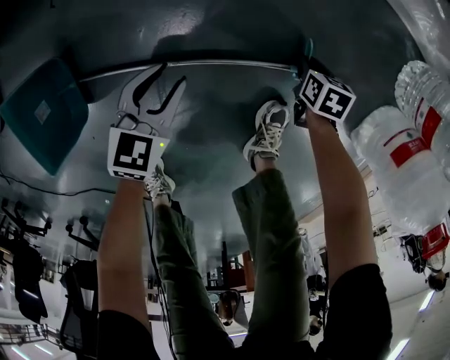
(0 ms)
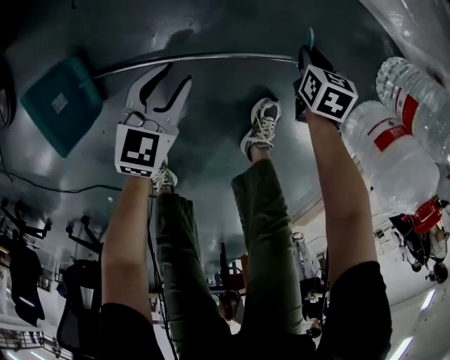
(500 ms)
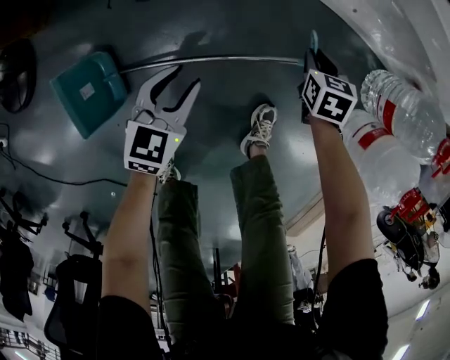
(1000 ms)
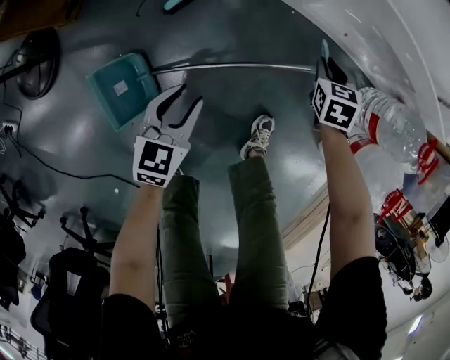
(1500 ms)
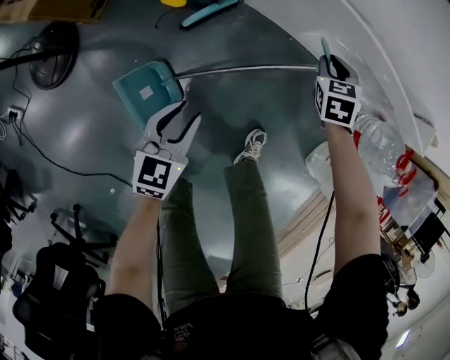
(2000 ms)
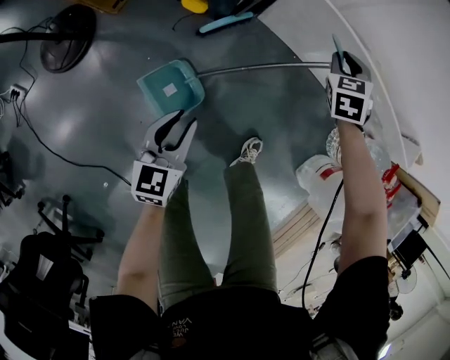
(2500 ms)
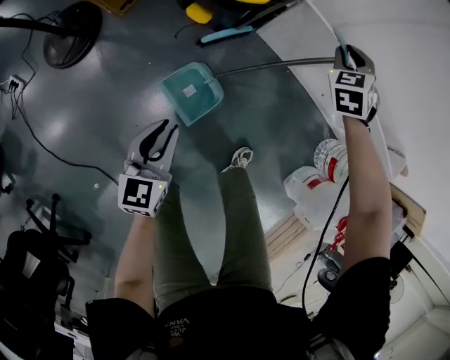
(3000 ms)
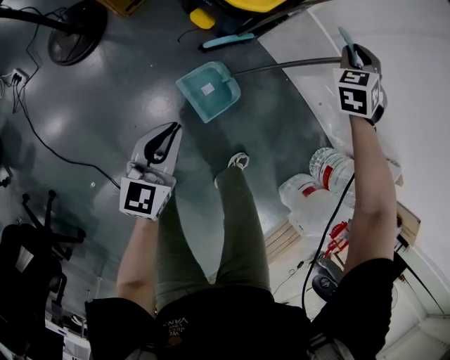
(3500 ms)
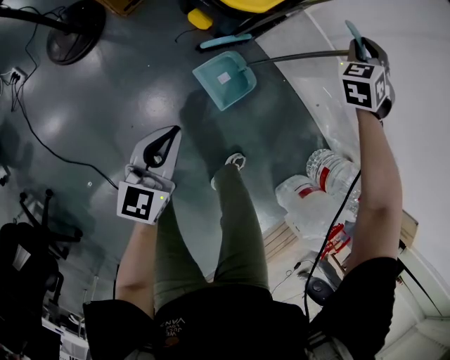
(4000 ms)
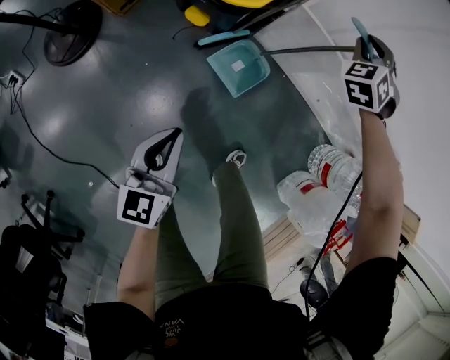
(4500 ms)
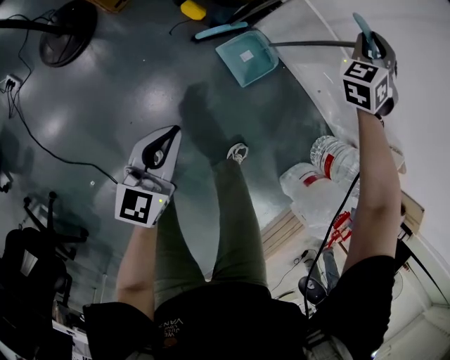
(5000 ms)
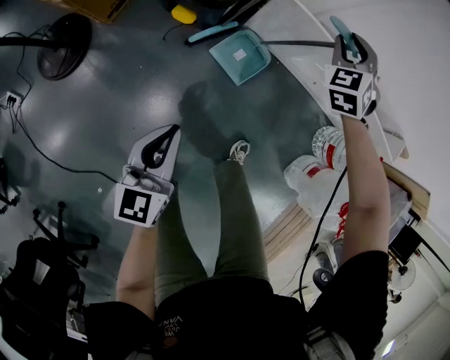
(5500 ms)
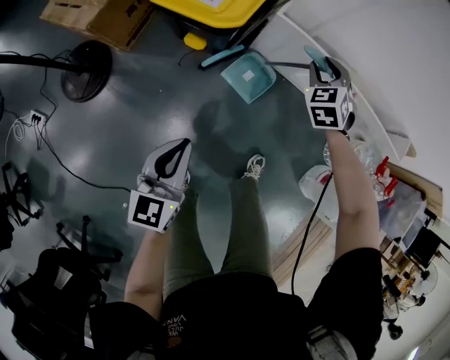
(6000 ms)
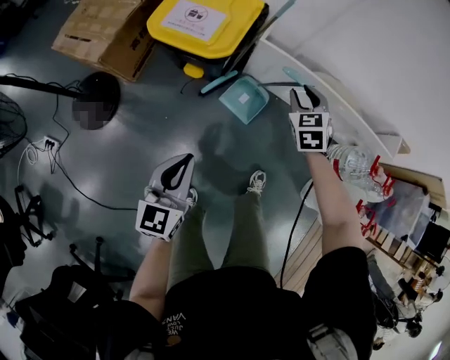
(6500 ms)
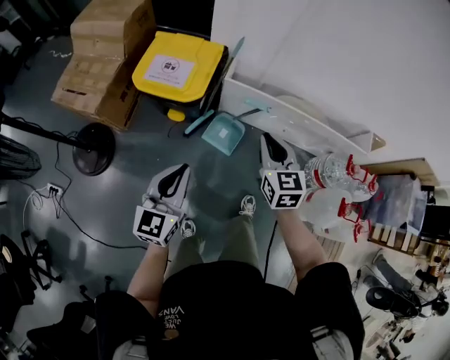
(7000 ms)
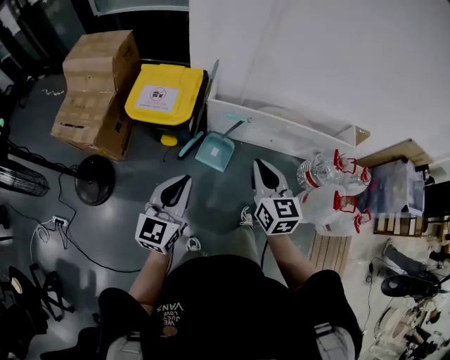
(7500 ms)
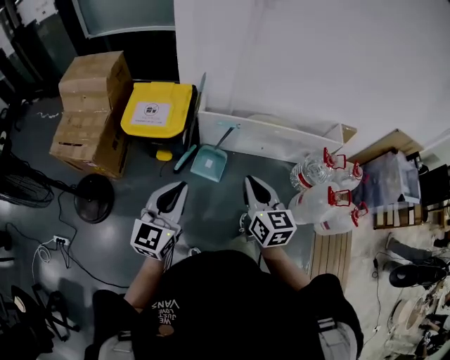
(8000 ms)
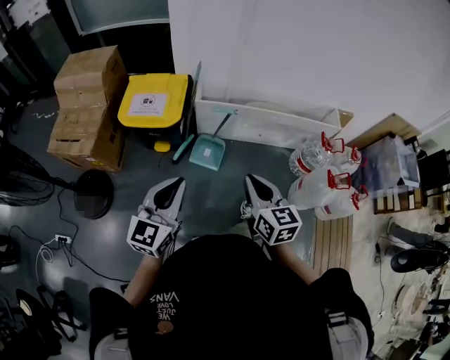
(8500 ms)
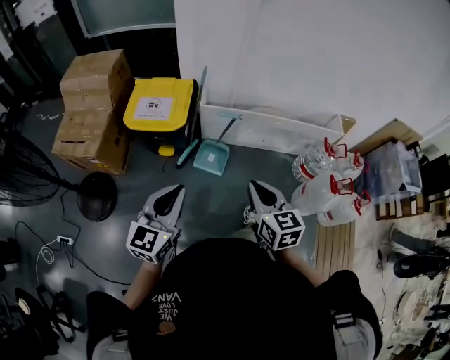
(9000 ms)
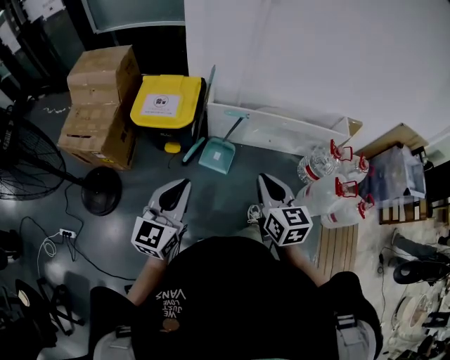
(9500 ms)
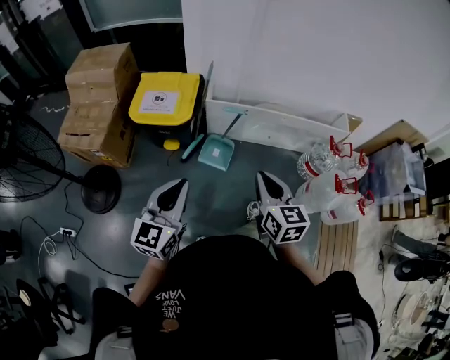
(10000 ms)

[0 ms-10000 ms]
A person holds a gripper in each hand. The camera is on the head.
0 ms to 2000 ms: The right gripper moves upward and to the left, roughly 50 cm, and changes its angle by roughly 50 degrees. Meanwhile the left gripper travels upward by about 35 cm.
2000 ms to 4000 ms: The right gripper goes some 25 cm upward, forward and to the left, and swivels approximately 40 degrees. Meanwhile the left gripper travels upward and to the left by roughly 15 cm, changes its angle by some 30 degrees, and closes.
4000 ms to 6000 ms: The right gripper travels backward by approximately 10 cm. Meanwhile the left gripper moves upward, about 10 cm.
6000 ms to 8000 ms: The right gripper travels backward and upward by roughly 40 cm, rolls clockwise, seen from behind, by some 60 degrees, and closes. The left gripper shifts some 25 cm upward, and changes its angle by roughly 30 degrees.
8000 ms to 10000 ms: The left gripper moves some 5 cm.

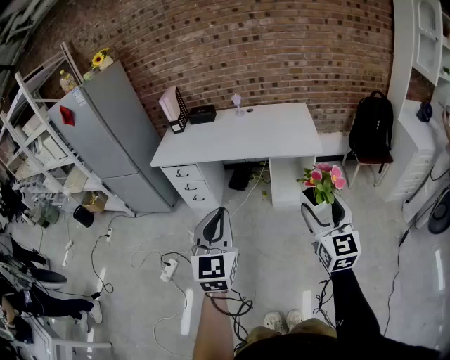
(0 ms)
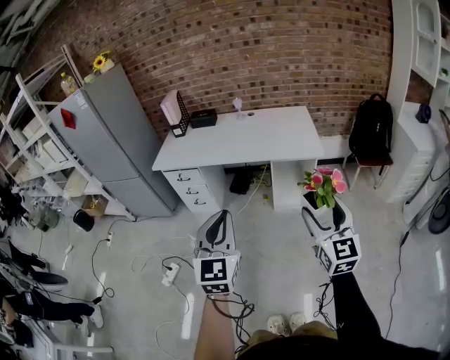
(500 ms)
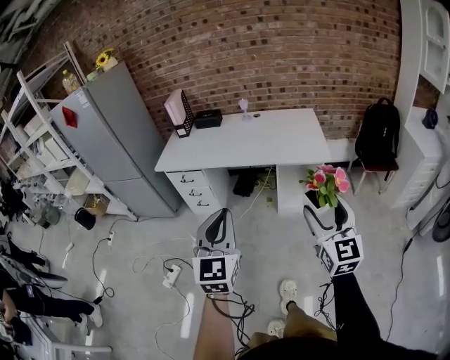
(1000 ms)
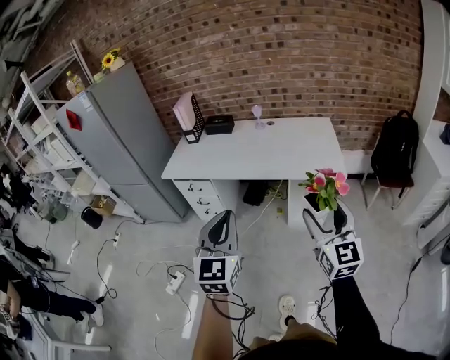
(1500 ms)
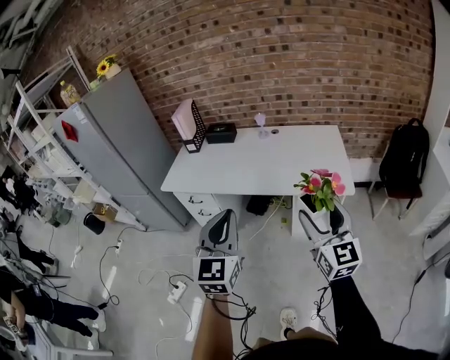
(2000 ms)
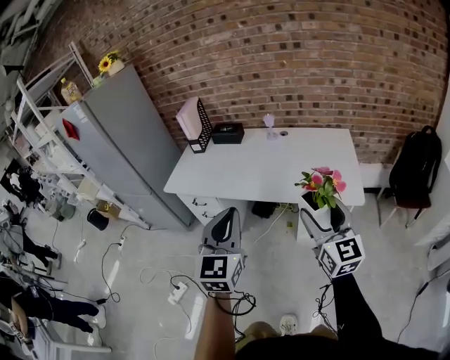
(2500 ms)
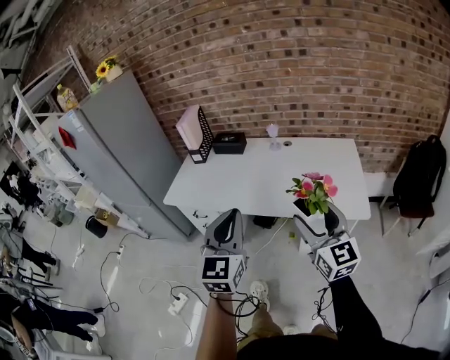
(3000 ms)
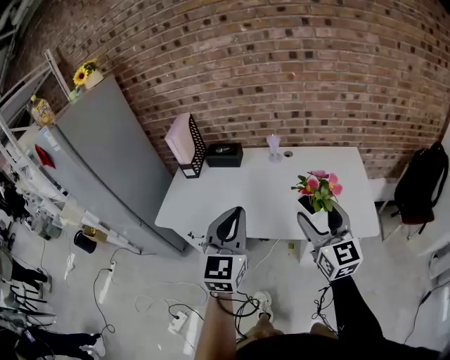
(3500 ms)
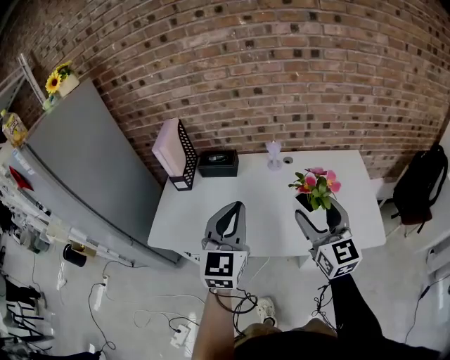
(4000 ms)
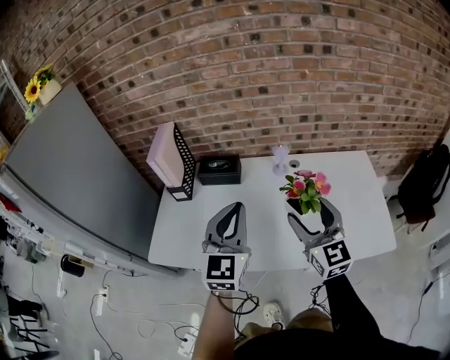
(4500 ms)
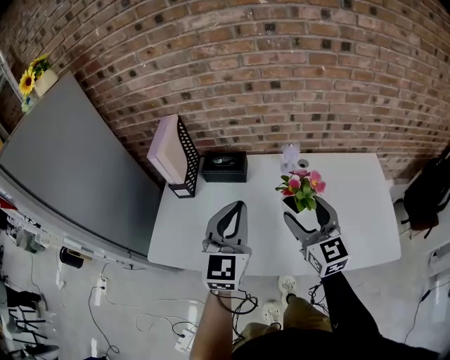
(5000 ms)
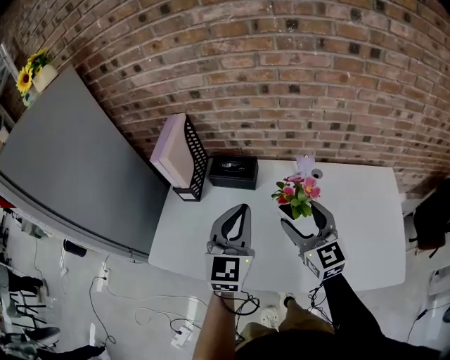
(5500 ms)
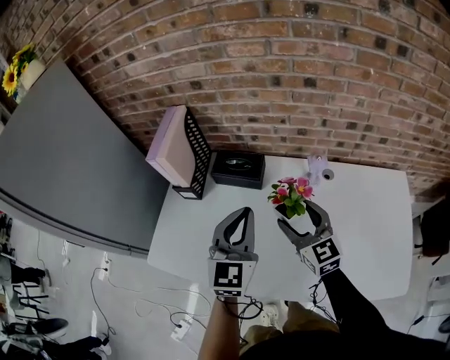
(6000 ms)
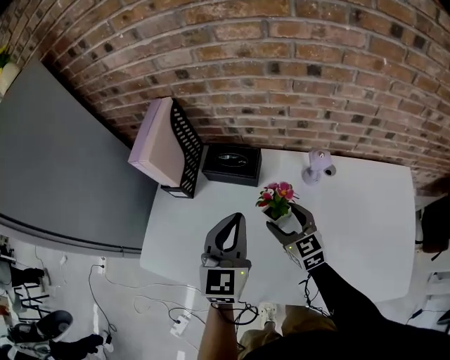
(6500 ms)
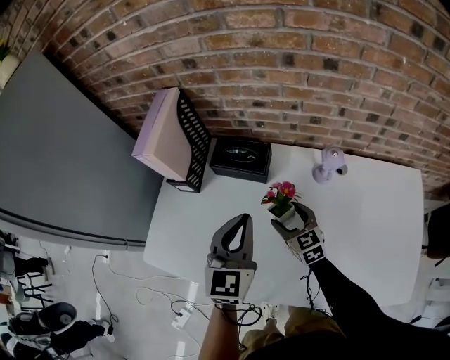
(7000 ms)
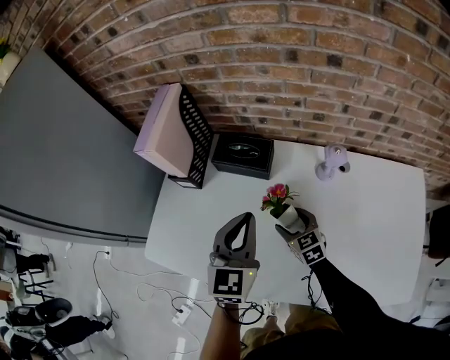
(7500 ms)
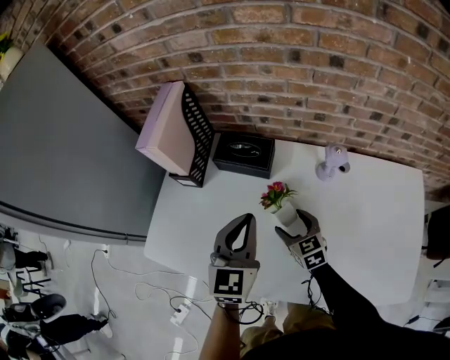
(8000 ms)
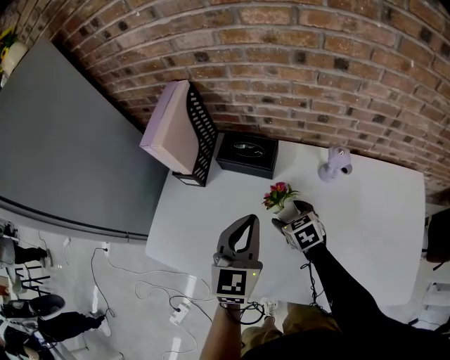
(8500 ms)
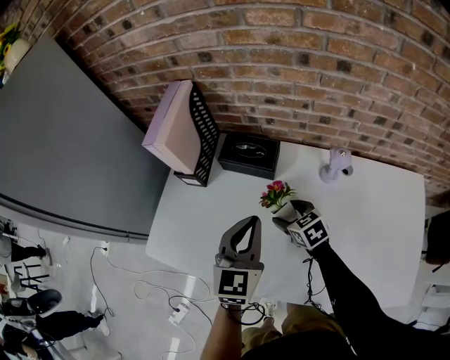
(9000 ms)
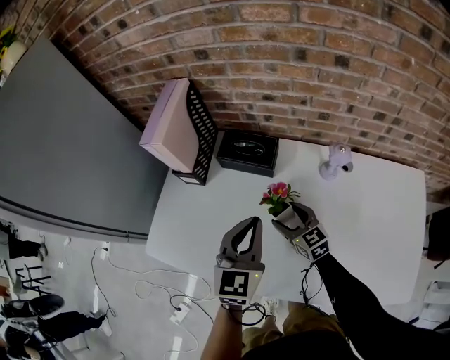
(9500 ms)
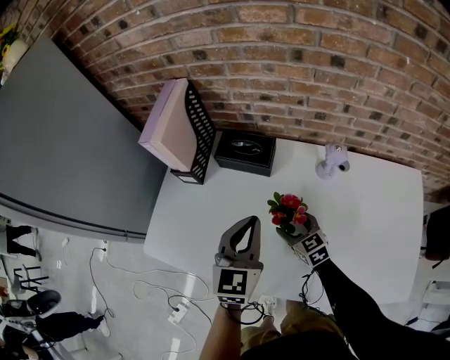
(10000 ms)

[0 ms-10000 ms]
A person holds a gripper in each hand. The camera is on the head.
0 ms to 2000 ms: The two grippers go some 25 cm forward.
2000 ms to 4000 ms: The two grippers go roughly 40 cm forward.
4000 ms to 6000 ms: The left gripper is displaced forward by about 25 cm. The right gripper moves forward, downward and to the left, some 35 cm, and turns by roughly 20 degrees.
6000 ms to 8000 ms: The right gripper shifts some 20 cm downward, and turns by approximately 20 degrees. Meanwhile the left gripper moves downward, roughly 5 cm.

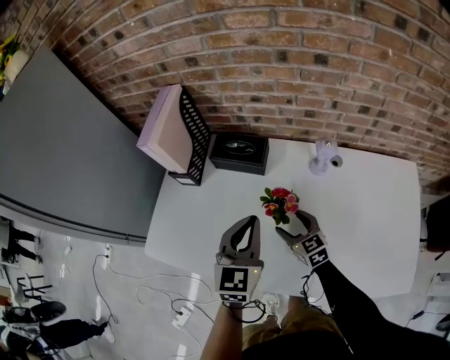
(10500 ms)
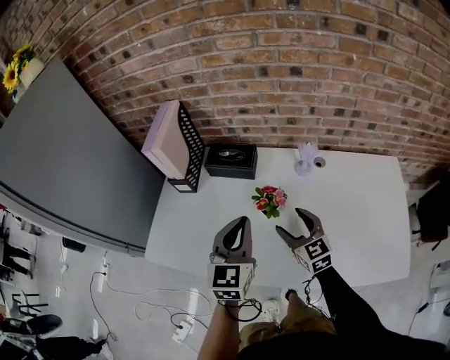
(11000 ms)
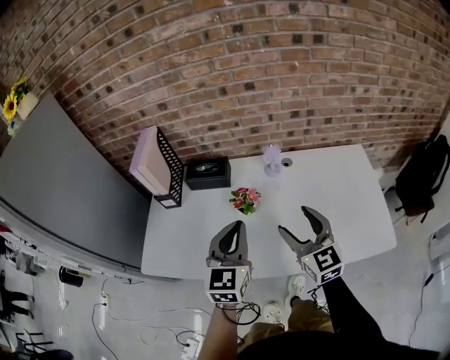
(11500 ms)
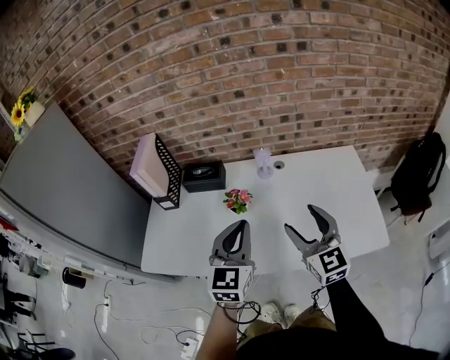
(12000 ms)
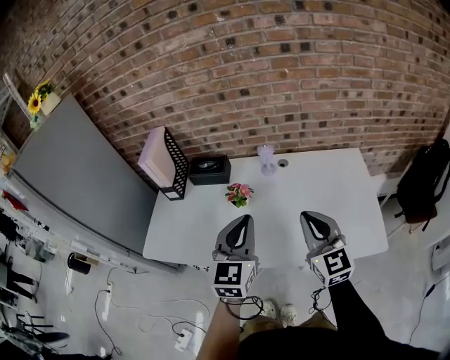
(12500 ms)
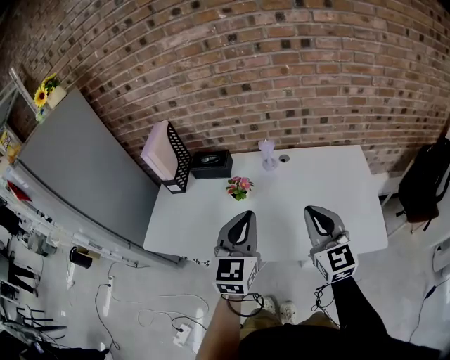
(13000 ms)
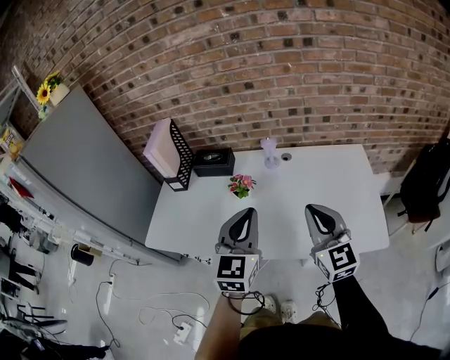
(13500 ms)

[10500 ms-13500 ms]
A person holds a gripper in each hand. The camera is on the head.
10500 ms to 12000 ms: The left gripper is displaced backward, upward and to the right by roughly 20 cm; the right gripper moves upward, backward and to the right, roughly 35 cm, and changes its angle by roughly 40 degrees.
12000 ms to 13500 ms: The grippers both shift backward by some 5 cm. The right gripper closes its fingers.

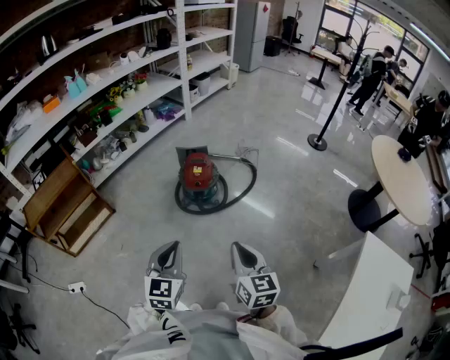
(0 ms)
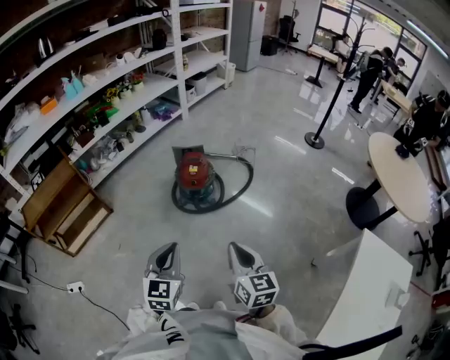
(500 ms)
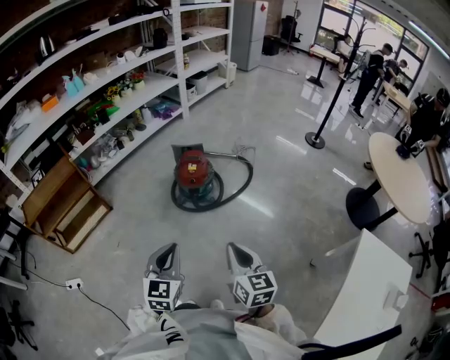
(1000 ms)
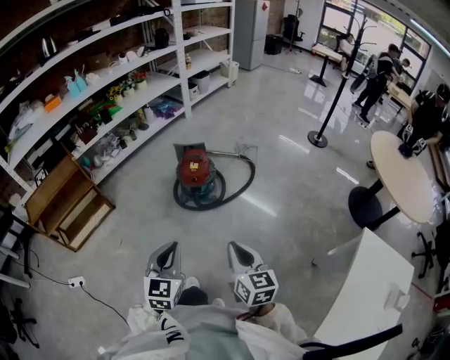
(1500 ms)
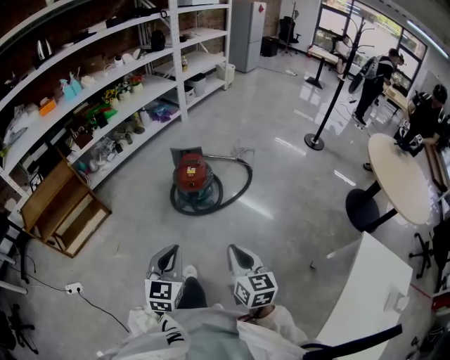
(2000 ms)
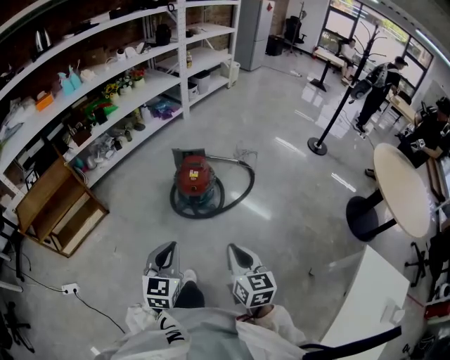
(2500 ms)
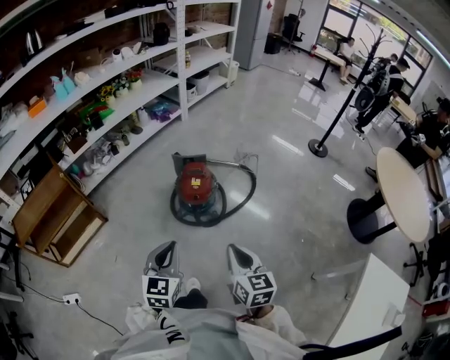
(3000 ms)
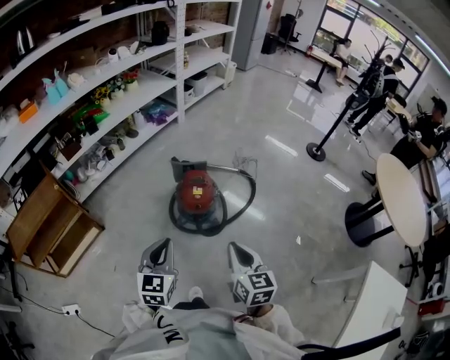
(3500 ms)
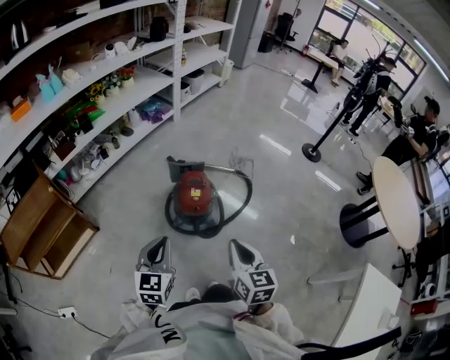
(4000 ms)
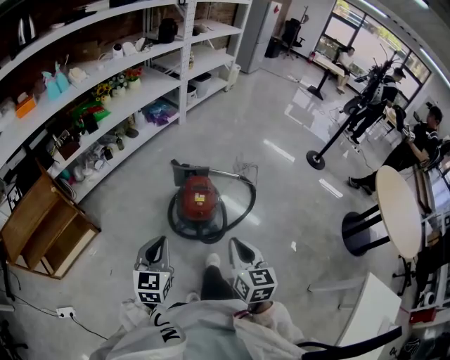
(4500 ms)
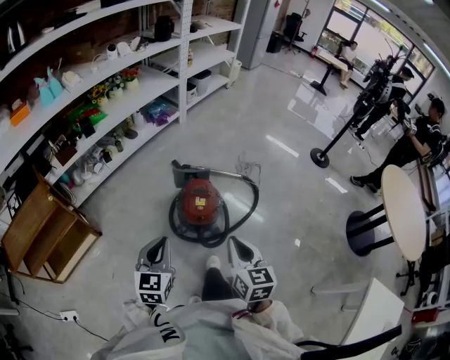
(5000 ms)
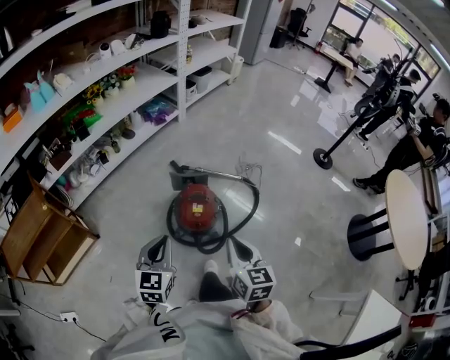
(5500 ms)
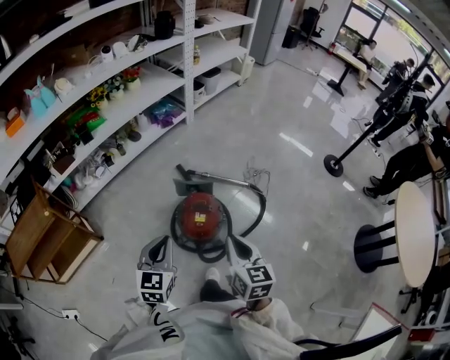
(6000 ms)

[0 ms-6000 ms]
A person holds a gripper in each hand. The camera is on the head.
0 ms to 2000 ms: The grippers make only small movements.
2000 ms to 4000 ms: The left gripper heads forward and to the left, covering some 25 cm. Meanwhile the right gripper travels forward by approximately 20 cm.
4000 ms to 6000 ms: Both grippers travel together forward, approximately 20 cm.
